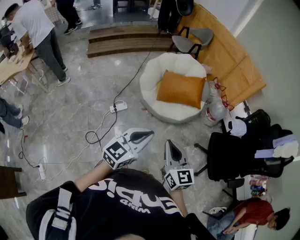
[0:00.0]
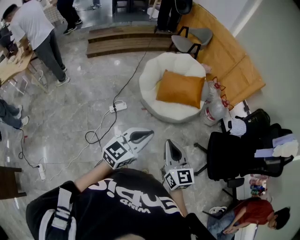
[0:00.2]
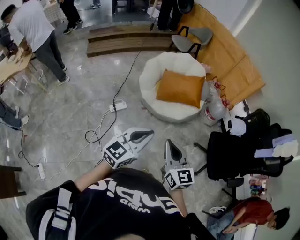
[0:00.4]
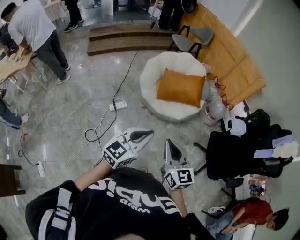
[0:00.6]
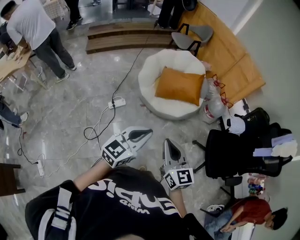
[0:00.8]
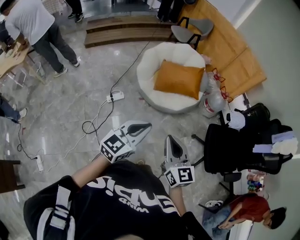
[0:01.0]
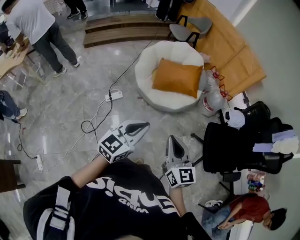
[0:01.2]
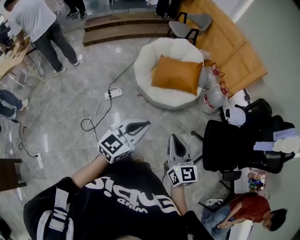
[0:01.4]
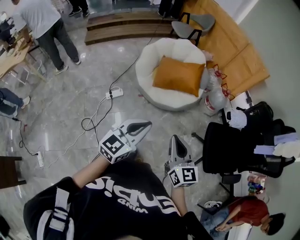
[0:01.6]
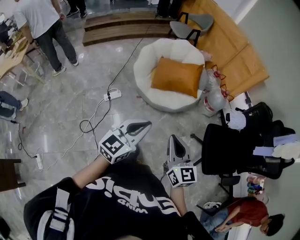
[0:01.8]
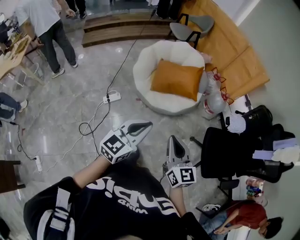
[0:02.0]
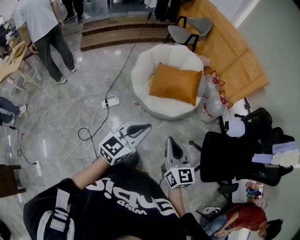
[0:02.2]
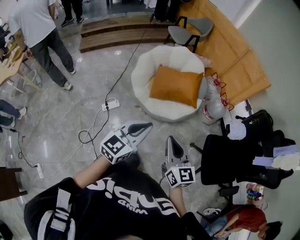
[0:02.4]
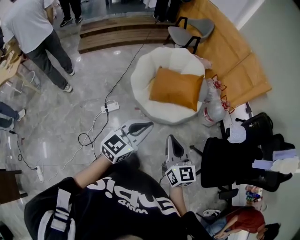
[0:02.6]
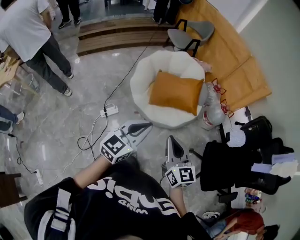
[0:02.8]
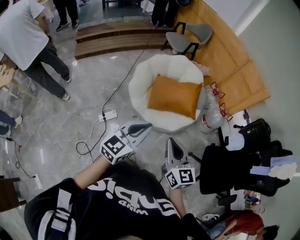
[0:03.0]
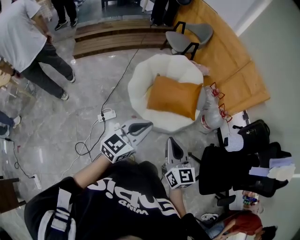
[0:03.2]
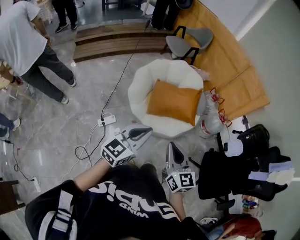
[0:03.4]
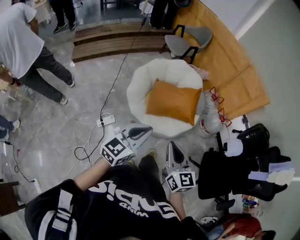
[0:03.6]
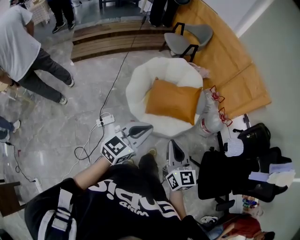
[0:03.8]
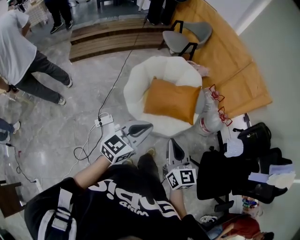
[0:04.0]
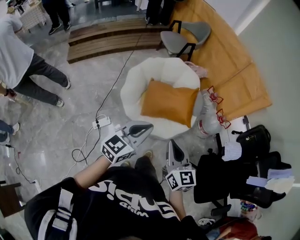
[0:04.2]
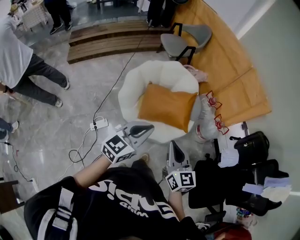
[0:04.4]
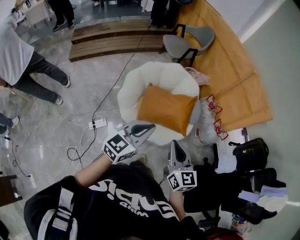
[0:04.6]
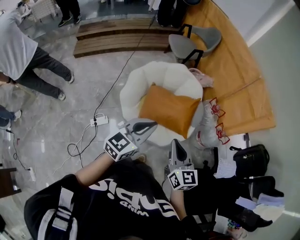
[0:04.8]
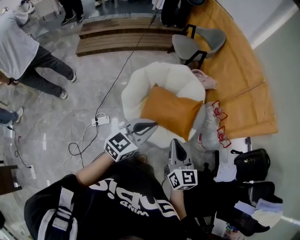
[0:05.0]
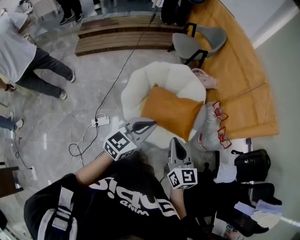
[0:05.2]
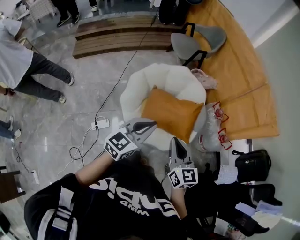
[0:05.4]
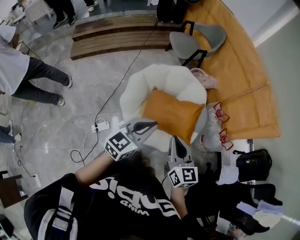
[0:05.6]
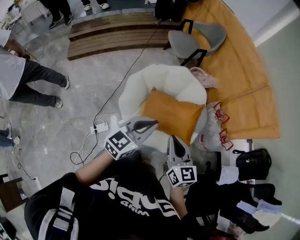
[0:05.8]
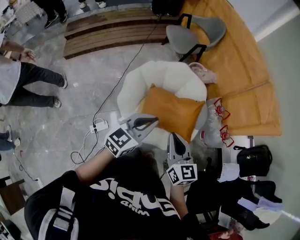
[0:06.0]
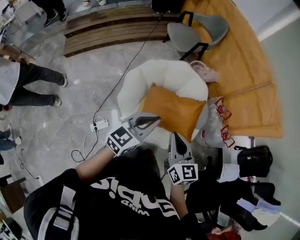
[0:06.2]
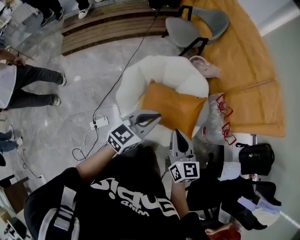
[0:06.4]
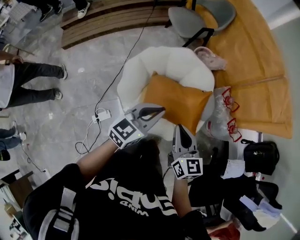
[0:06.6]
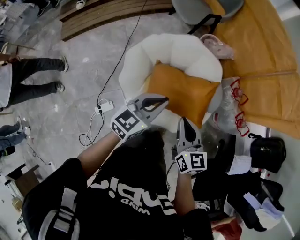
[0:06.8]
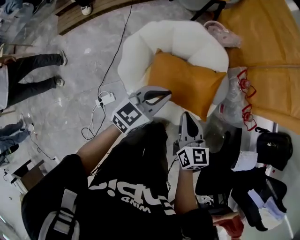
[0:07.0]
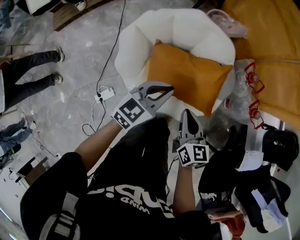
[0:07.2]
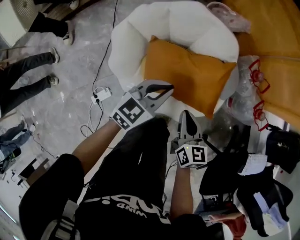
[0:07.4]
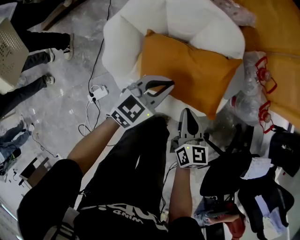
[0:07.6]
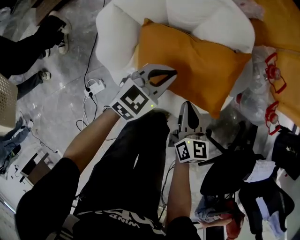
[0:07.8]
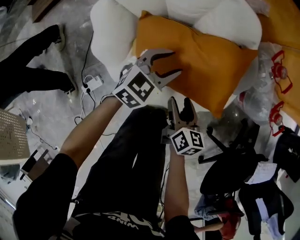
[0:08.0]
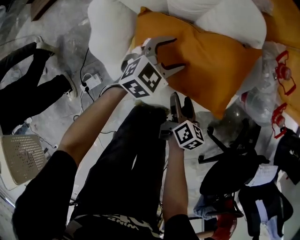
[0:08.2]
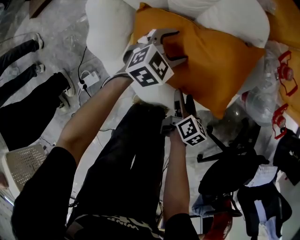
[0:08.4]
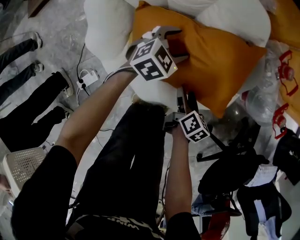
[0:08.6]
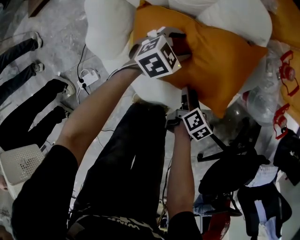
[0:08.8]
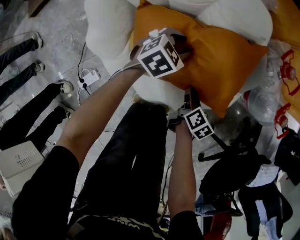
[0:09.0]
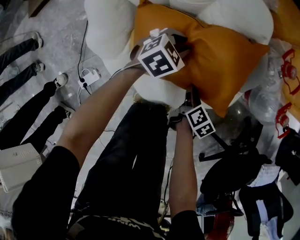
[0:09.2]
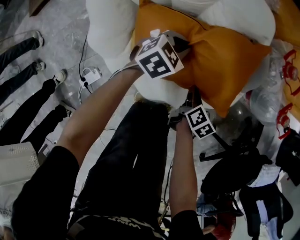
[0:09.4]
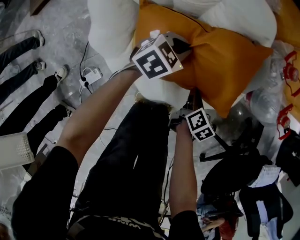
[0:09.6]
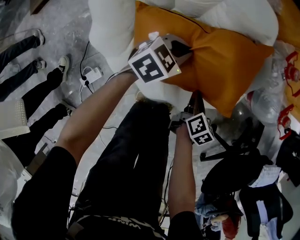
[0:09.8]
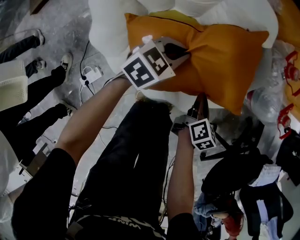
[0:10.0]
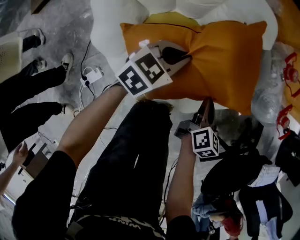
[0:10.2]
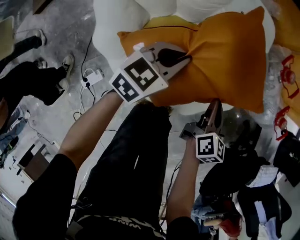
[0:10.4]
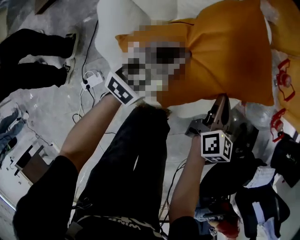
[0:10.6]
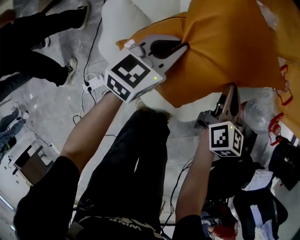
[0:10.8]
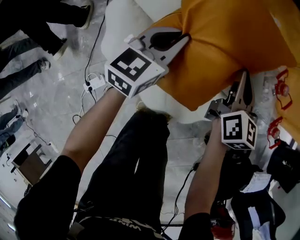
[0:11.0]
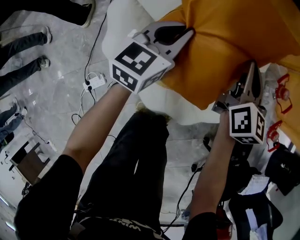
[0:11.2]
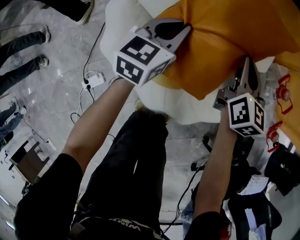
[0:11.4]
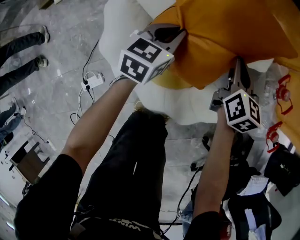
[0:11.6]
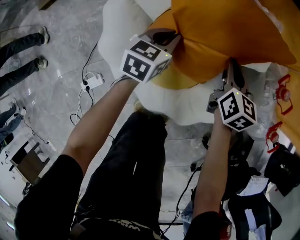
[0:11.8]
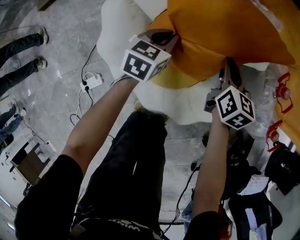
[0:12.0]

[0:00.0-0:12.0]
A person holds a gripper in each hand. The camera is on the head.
0:00.0 to 0:01.6: Both grippers move to the right, some 10 cm.
0:01.6 to 0:03.0: The left gripper goes approximately 20 cm forward. The right gripper goes some 25 cm forward and to the left.
0:03.0 to 0:04.4: Both grippers travel together forward, roughly 20 cm.
0:04.4 to 0:06.0: Both grippers travel together forward, approximately 20 cm.
0:06.0 to 0:07.6: The left gripper travels downward and forward by approximately 40 cm; the right gripper moves downward, approximately 35 cm, and rotates some 30 degrees.
0:07.6 to 0:09.0: The grippers both shift downward by approximately 25 cm. The right gripper changes its angle by roughly 40 degrees, and opens its fingers. The left gripper changes its angle by some 30 degrees, and opens its fingers.
0:09.0 to 0:10.4: Both grippers move upward, some 10 cm. The right gripper rotates about 30 degrees, and closes; the left gripper rotates approximately 20 degrees, and closes.
0:10.4 to 0:12.0: The left gripper goes some 15 cm to the left and forward, reaches roughly 10 cm upward, then returns, and changes its angle by some 20 degrees. Meanwhile the right gripper shifts approximately 20 cm forward and to the left, and rotates some 30 degrees.

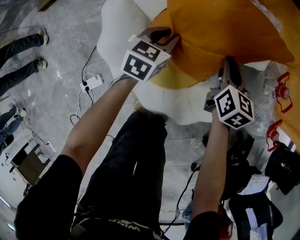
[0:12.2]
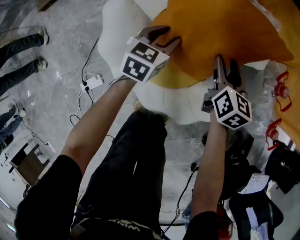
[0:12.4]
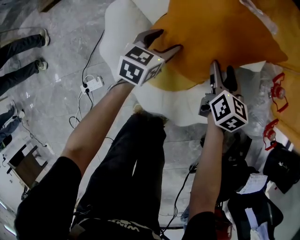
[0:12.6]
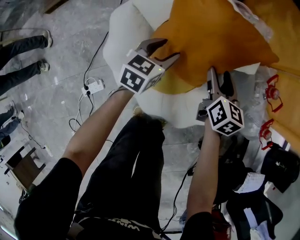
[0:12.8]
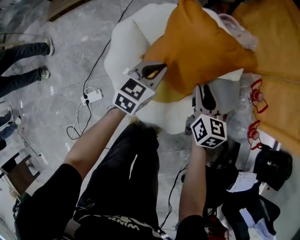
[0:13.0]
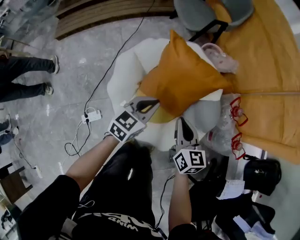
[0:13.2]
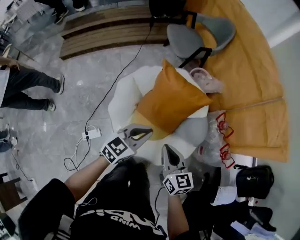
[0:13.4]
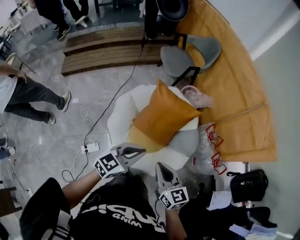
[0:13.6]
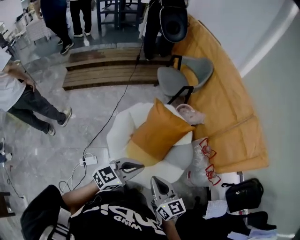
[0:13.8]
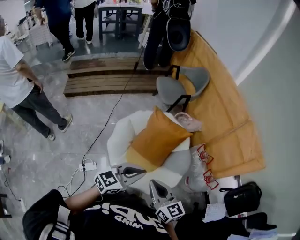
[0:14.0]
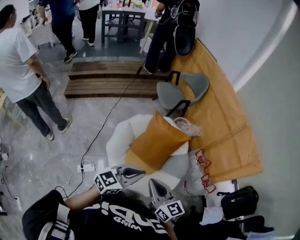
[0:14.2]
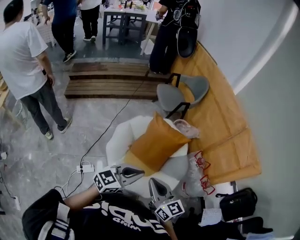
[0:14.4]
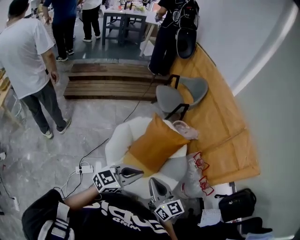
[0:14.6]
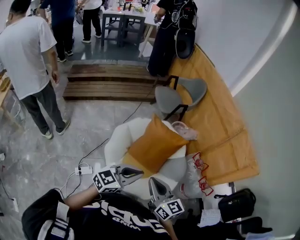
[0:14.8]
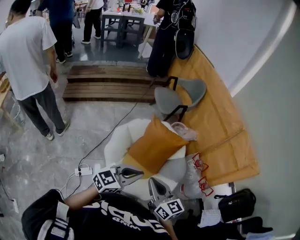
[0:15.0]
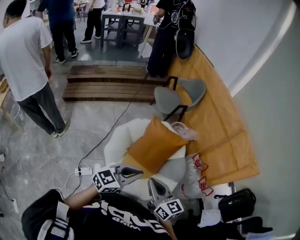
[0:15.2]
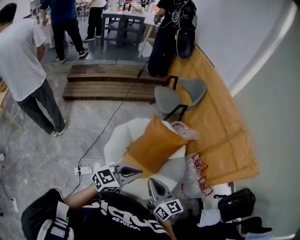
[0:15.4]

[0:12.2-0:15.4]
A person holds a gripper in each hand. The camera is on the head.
0:12.2 to 0:13.8: Both grippers travel together upward and backward, roughly 60 cm. The right gripper turns by some 40 degrees, and opens, then closes once more. Meanwhile the left gripper changes its angle by roughly 30 degrees, and opens, then closes again.
0:13.8 to 0:15.4: The left gripper is displaced upward by some 5 cm, while the right gripper moves roughly 5 cm.

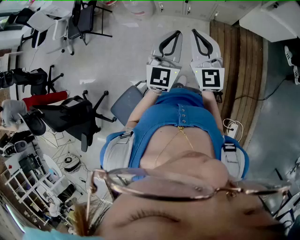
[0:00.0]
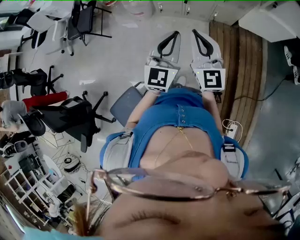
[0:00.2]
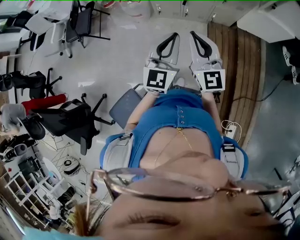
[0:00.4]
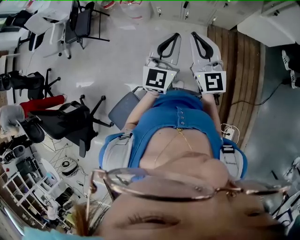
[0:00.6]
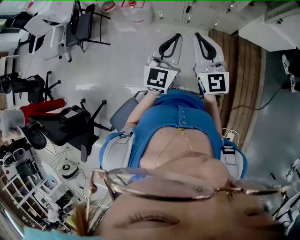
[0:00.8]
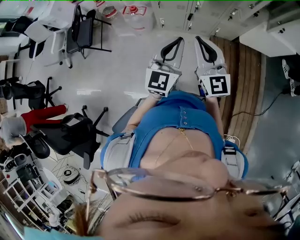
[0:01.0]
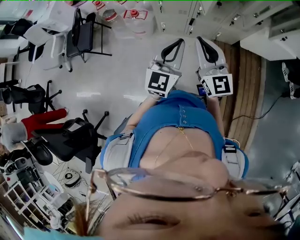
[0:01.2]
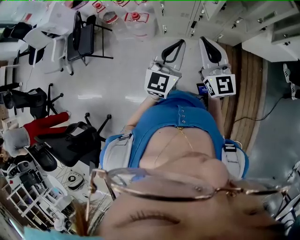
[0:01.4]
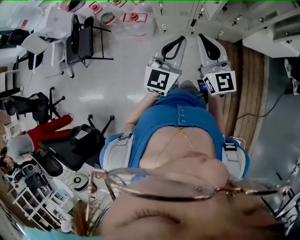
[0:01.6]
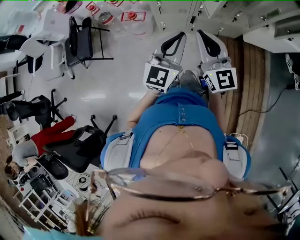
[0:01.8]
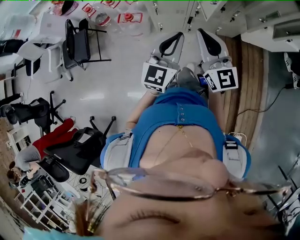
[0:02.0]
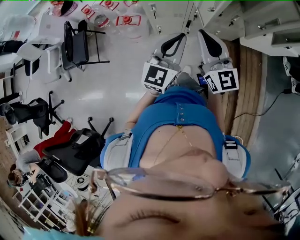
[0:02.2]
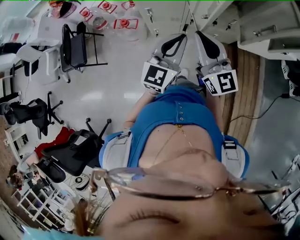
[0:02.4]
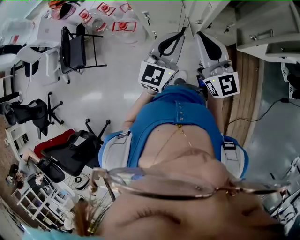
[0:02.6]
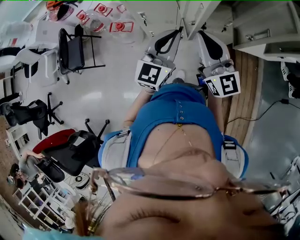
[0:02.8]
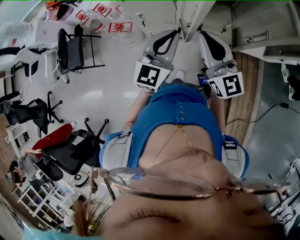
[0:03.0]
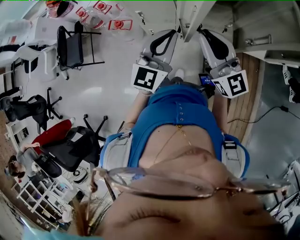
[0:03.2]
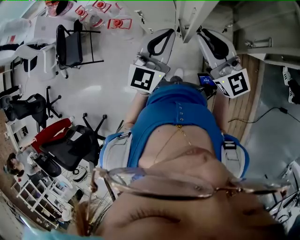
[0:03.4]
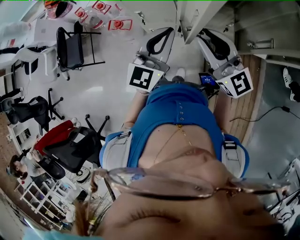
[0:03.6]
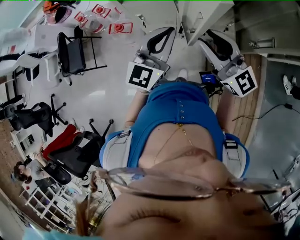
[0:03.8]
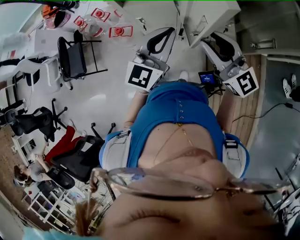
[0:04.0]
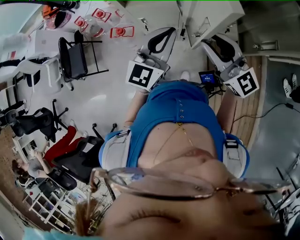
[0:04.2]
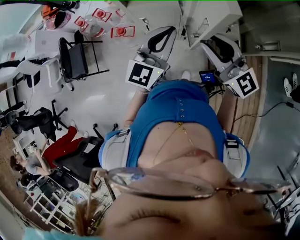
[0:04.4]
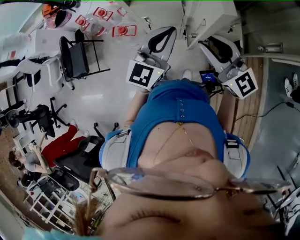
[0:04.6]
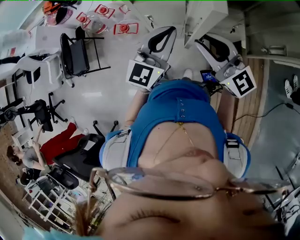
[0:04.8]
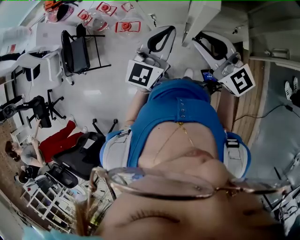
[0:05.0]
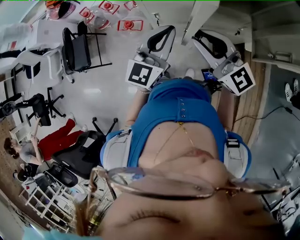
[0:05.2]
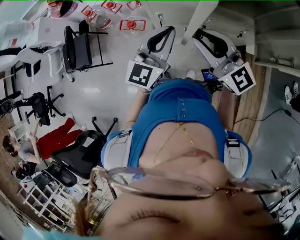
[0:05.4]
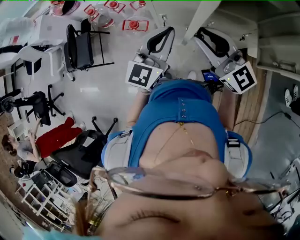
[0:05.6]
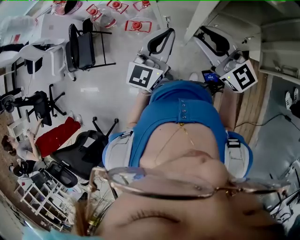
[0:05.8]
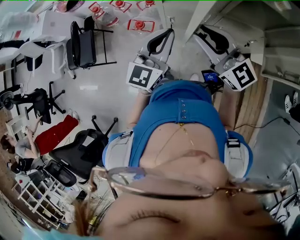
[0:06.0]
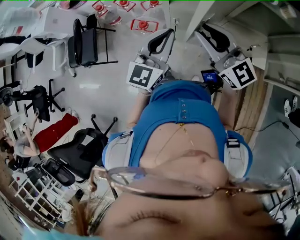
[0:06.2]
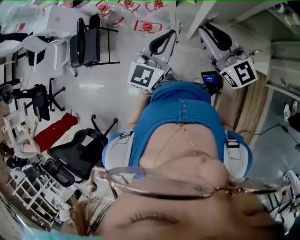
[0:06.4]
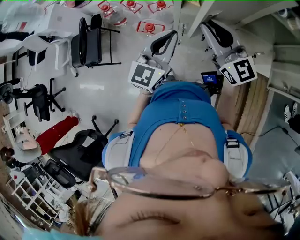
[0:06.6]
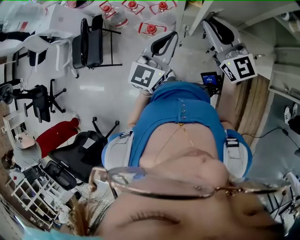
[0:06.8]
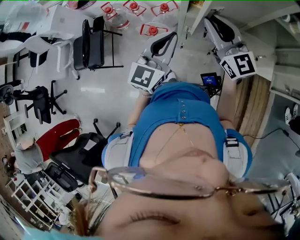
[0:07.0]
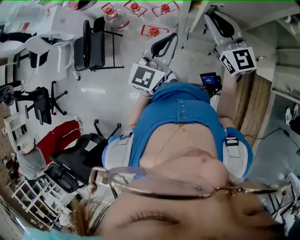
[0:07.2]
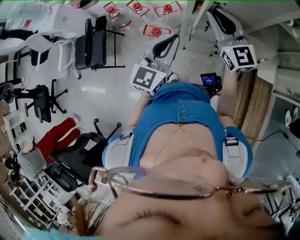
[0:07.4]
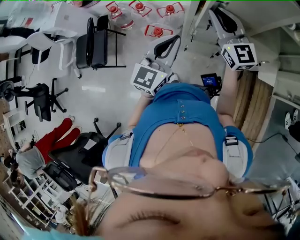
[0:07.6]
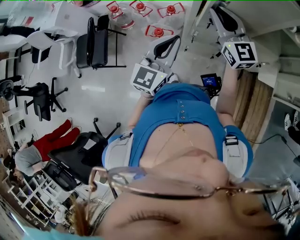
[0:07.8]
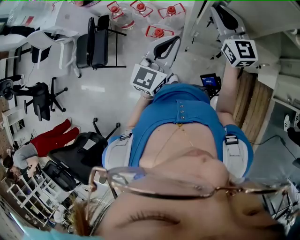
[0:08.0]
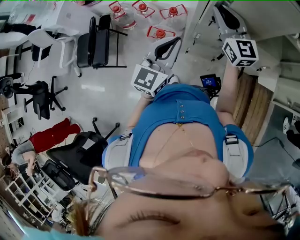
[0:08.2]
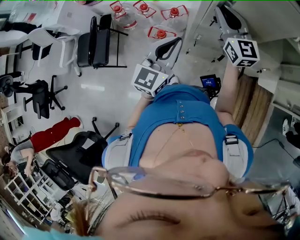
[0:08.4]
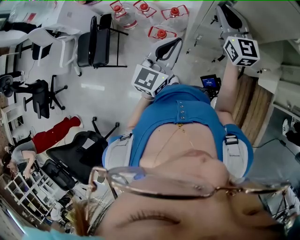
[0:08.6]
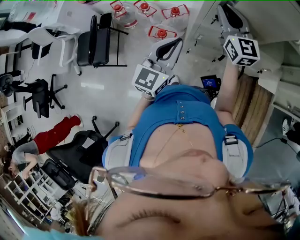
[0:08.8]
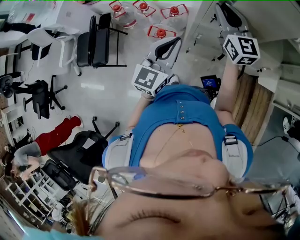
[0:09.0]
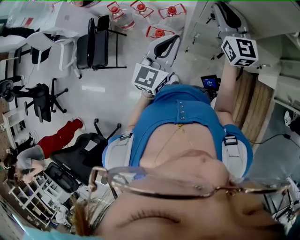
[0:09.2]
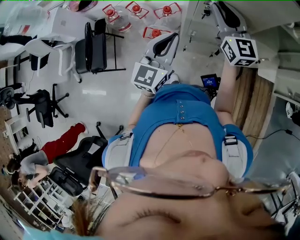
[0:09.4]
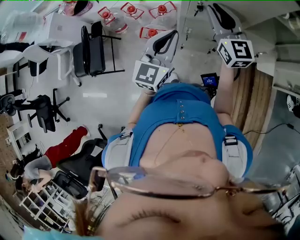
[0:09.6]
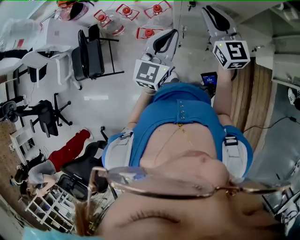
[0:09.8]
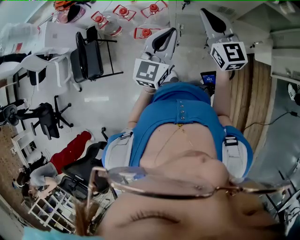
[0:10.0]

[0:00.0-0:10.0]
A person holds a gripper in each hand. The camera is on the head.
0:00.0 to 0:01.4: The two grippers go approximately 20 cm forward.
0:01.4 to 0:02.8: Both grippers travel together forward and to the right, roughly 20 cm.
0:02.8 to 0:04.2: The left gripper travels forward by some 5 cm, while the right gripper opens.
0:04.2 to 0:05.8: The right gripper shifts about 20 cm to the left and forward; the left gripper is displaced to the left by some 15 cm.
0:05.8 to 0:07.2: The right gripper goes approximately 15 cm forward and to the left. The left gripper moves to the left, roughly 10 cm.
0:07.2 to 0:08.6: The right gripper moves forward, roughly 10 cm.
0:08.6 to 0:10.0: The left gripper moves to the right, roughly 5 cm. Meanwhile the right gripper heads backward, covering approximately 10 cm.
